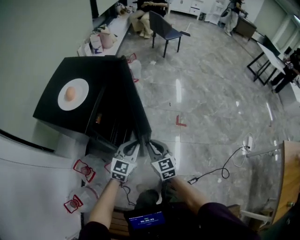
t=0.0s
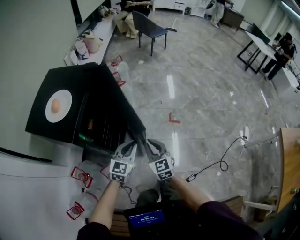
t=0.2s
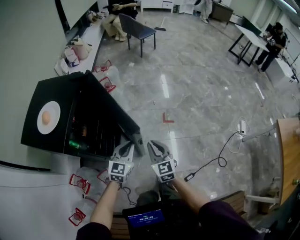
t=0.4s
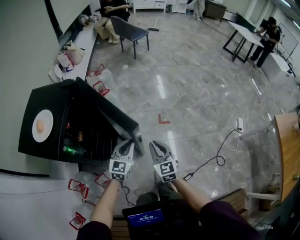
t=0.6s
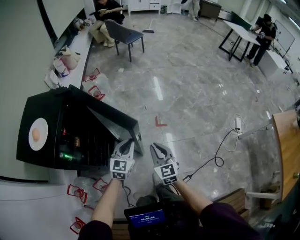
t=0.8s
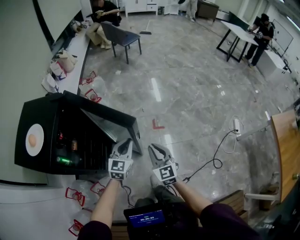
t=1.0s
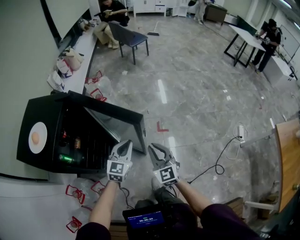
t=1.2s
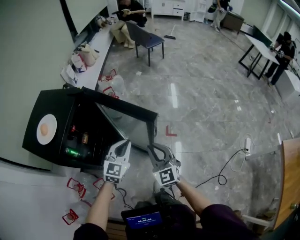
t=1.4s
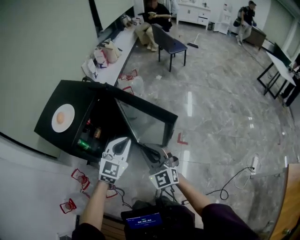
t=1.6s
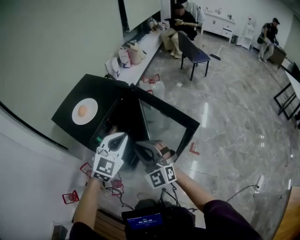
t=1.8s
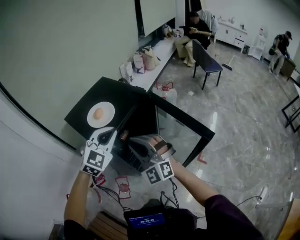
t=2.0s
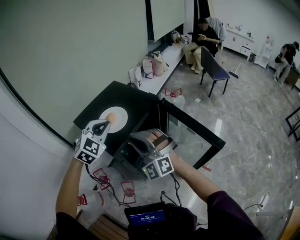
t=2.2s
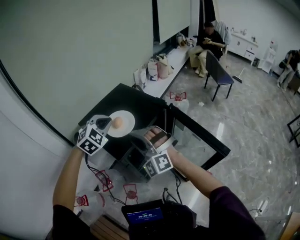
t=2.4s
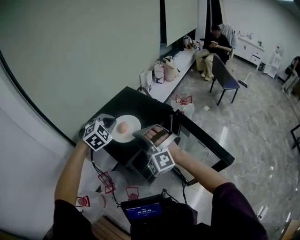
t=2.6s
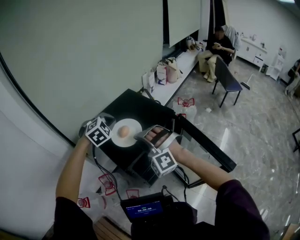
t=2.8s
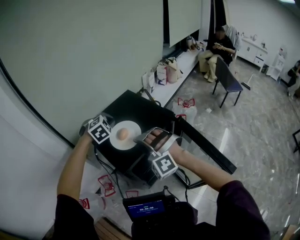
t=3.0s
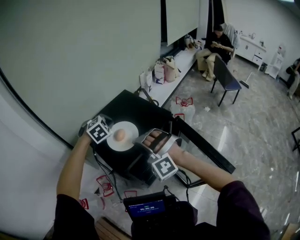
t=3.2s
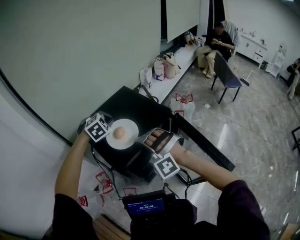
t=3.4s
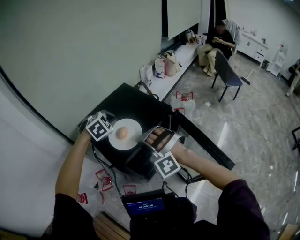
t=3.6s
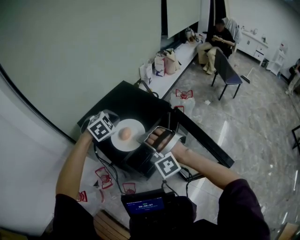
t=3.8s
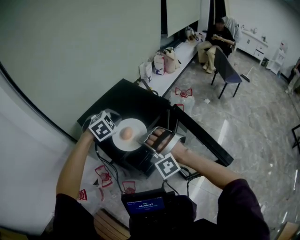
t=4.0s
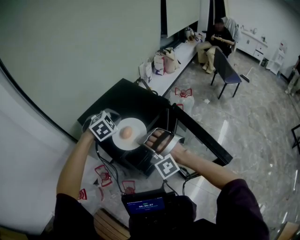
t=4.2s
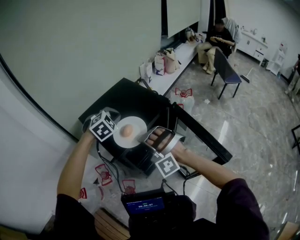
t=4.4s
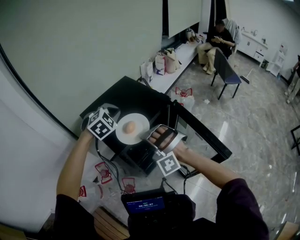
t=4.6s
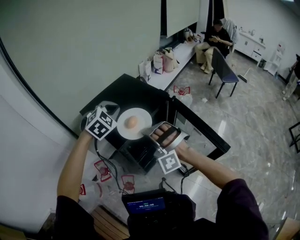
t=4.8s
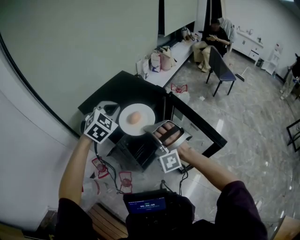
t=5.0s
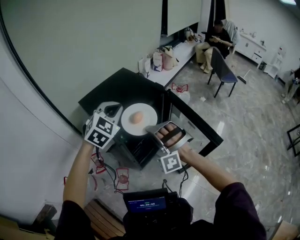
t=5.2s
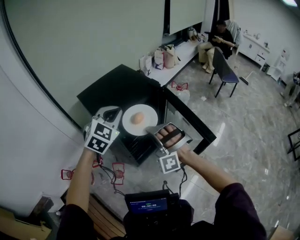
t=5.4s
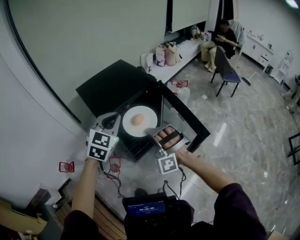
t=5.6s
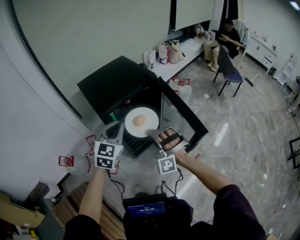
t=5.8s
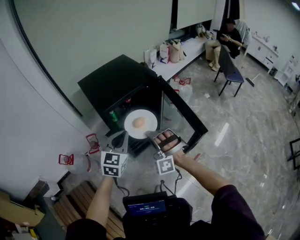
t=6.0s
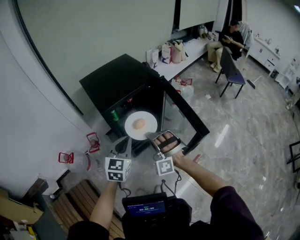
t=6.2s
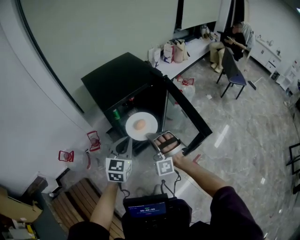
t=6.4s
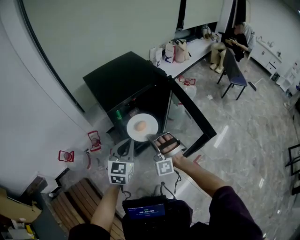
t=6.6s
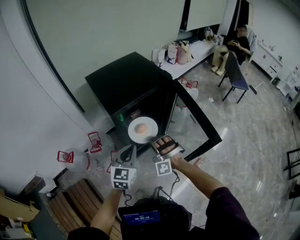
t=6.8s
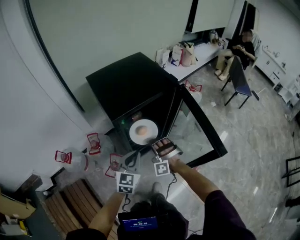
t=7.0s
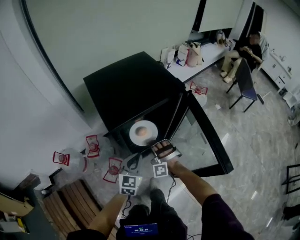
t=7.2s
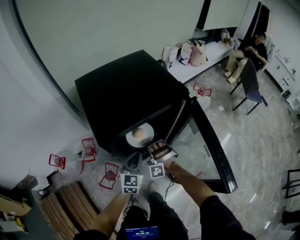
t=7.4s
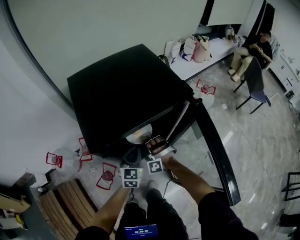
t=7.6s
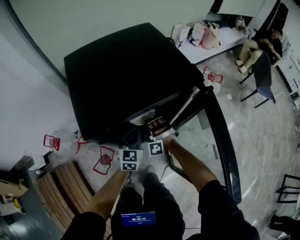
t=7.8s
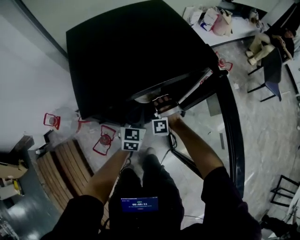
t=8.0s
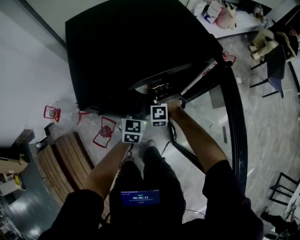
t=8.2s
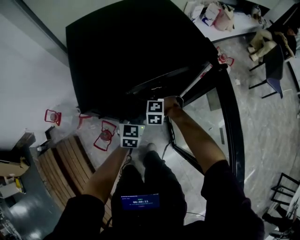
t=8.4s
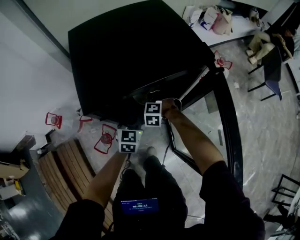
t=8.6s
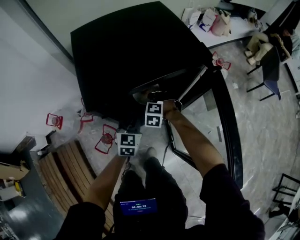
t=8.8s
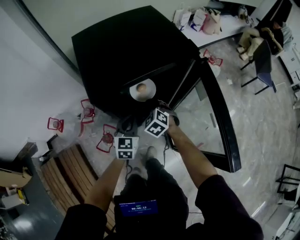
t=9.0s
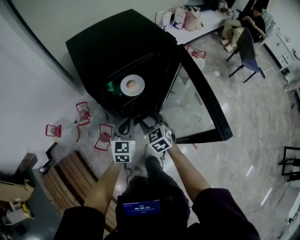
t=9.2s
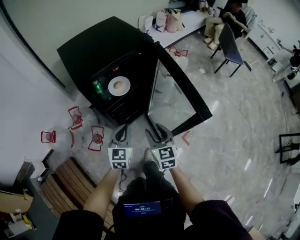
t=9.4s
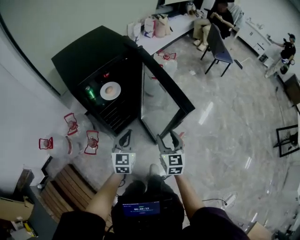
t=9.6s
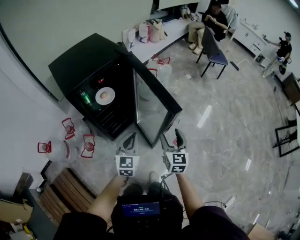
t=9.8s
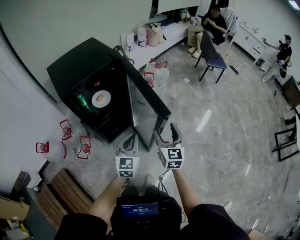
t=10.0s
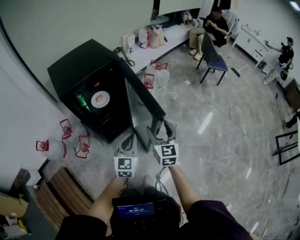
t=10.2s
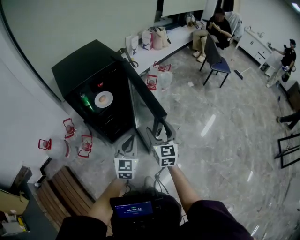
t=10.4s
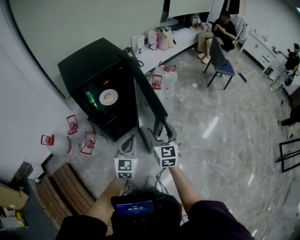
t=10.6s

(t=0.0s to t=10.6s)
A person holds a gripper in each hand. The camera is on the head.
t=0.0s - t=1.6s: The right gripper is displaced upward, to the right and forward by roughly 15 cm, and swivels some 30 degrees. Meanwhile the left gripper travels upward, forward and to the right by about 20 cm.
t=1.6s - t=3.0s: The left gripper ends up approximately 50 cm from where it was, and angles its fingers downward, by some 30 degrees, while the right gripper ends up some 35 cm from where it was, and twists approximately 60 degrees counterclockwise, seen from behind.
t=3.0s - t=4.6s: The left gripper heads backward, covering some 10 cm. Meanwhile the right gripper is displaced backward by about 5 cm.
t=4.6s - t=6.0s: The right gripper goes approximately 20 cm backward and to the right. The left gripper goes some 30 cm backward, and rotates around the line of its fingers by roughly 40 degrees, counterclockwise from behind.
t=6.0s - t=7.6s: The grippers both shift downward and forward by some 35 cm. The right gripper turns by some 30 degrees.
t=7.6s - t=9.0s: The left gripper shifts by approximately 5 cm. The right gripper rotates around the line of its fingers by some 50 degrees, clockwise from behind, and opens.
t=9.0s - t=10.6s: The right gripper shifts by approximately 50 cm, angles its fingers upward, by about 40 degrees, and opens up, while the left gripper changes place by some 35 cm.

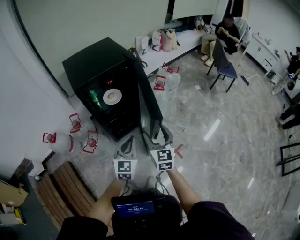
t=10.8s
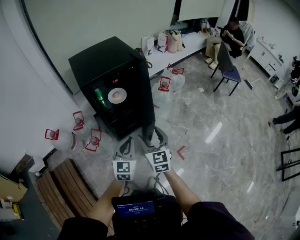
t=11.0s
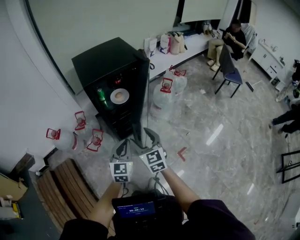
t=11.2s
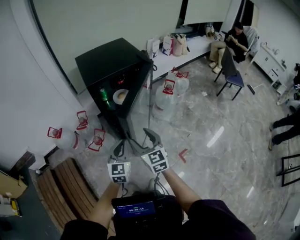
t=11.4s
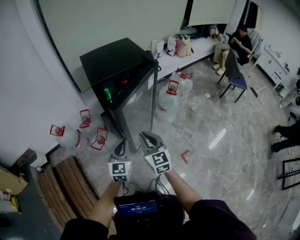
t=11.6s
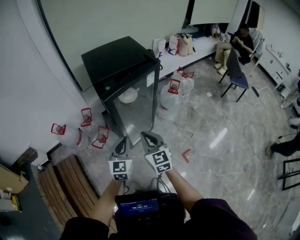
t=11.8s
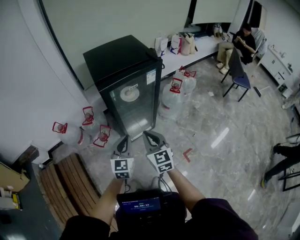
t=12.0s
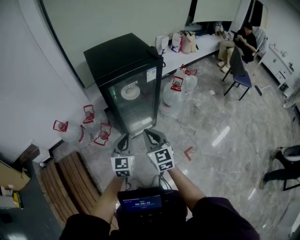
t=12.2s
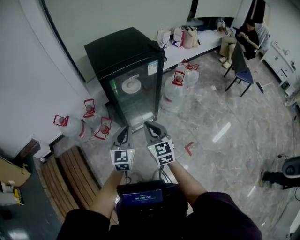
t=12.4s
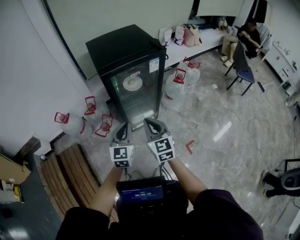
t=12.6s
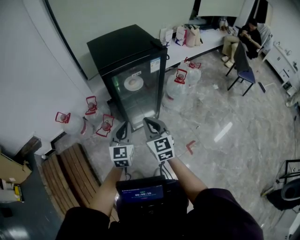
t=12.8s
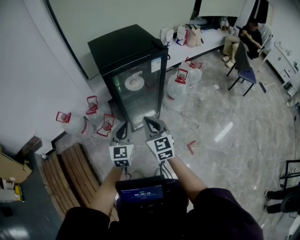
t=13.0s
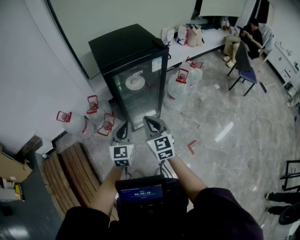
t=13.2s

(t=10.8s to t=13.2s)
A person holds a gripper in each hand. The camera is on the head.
t=10.8s - t=12.0s: Both grippers travel together to the left, about 10 cm. The right gripper closes its fingers.
t=12.0s - t=13.2s: The grippers move only a little.

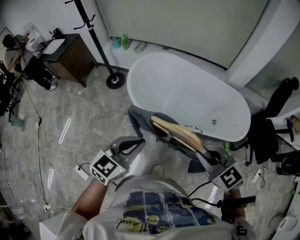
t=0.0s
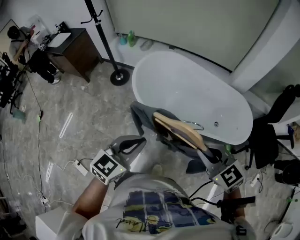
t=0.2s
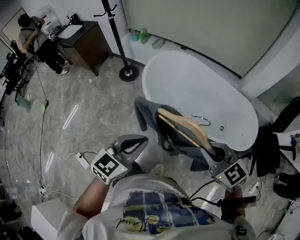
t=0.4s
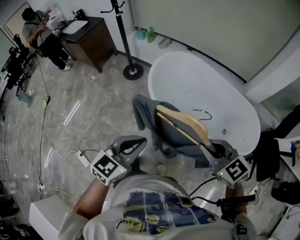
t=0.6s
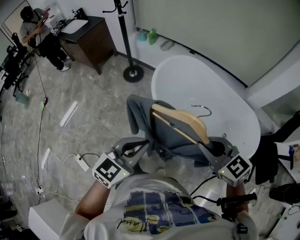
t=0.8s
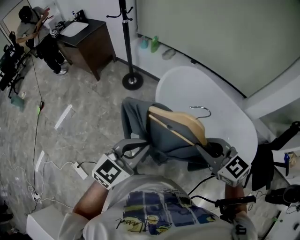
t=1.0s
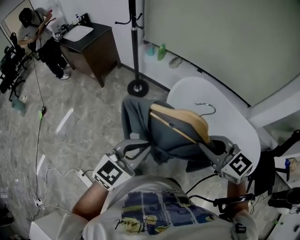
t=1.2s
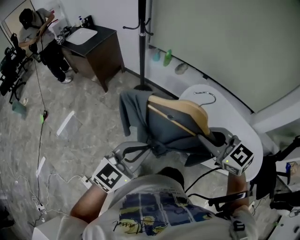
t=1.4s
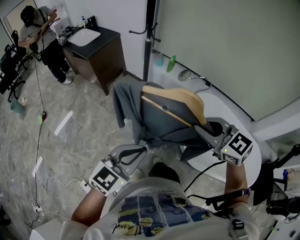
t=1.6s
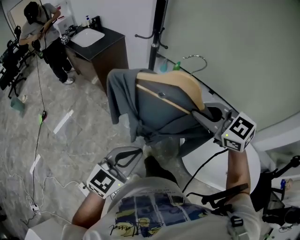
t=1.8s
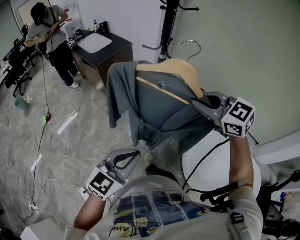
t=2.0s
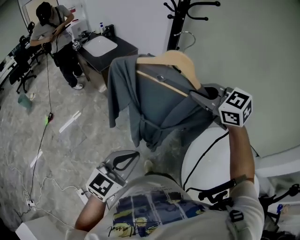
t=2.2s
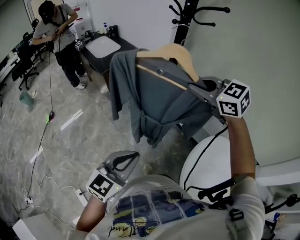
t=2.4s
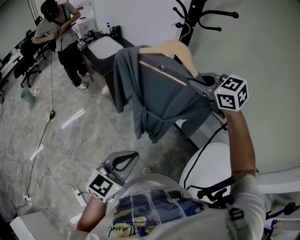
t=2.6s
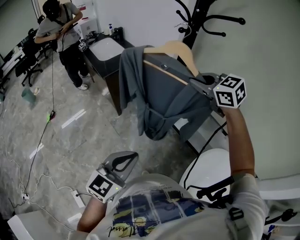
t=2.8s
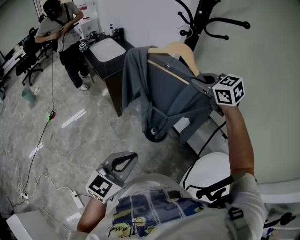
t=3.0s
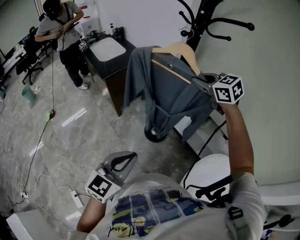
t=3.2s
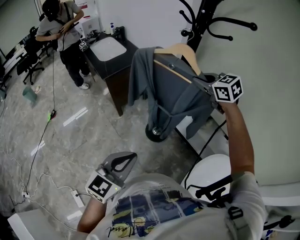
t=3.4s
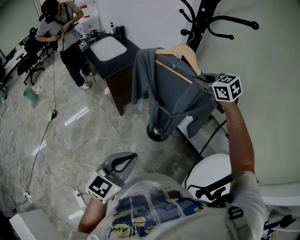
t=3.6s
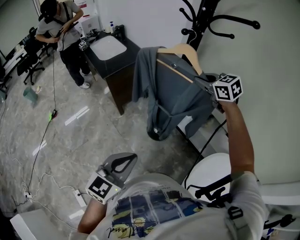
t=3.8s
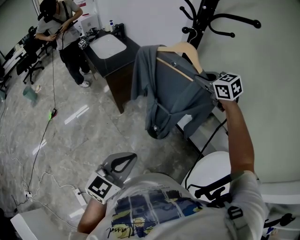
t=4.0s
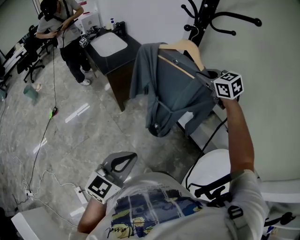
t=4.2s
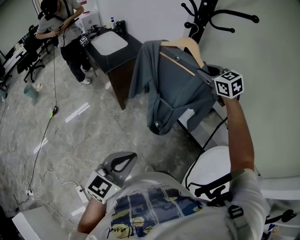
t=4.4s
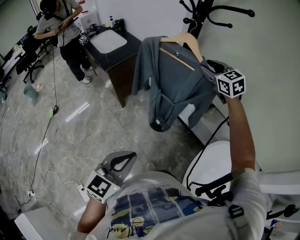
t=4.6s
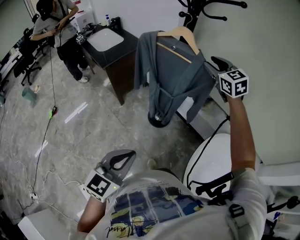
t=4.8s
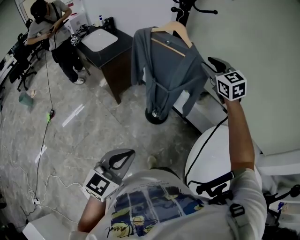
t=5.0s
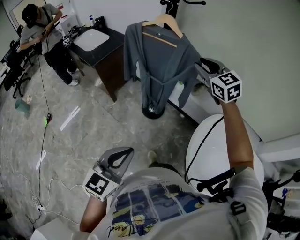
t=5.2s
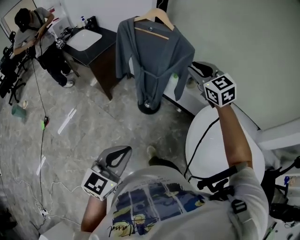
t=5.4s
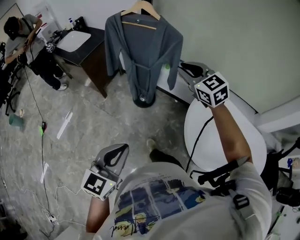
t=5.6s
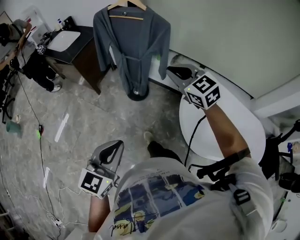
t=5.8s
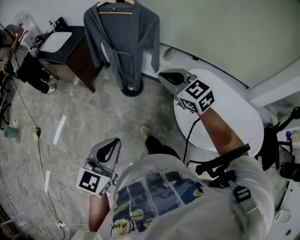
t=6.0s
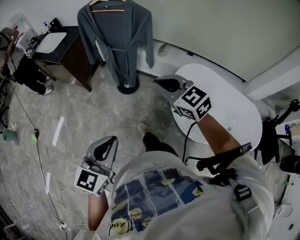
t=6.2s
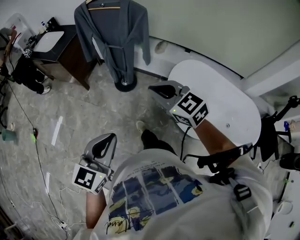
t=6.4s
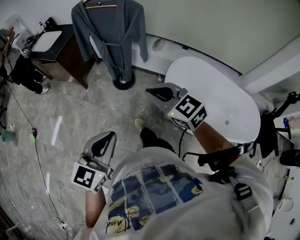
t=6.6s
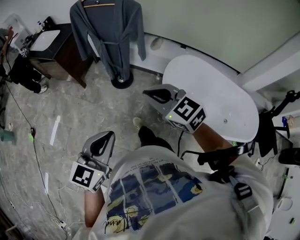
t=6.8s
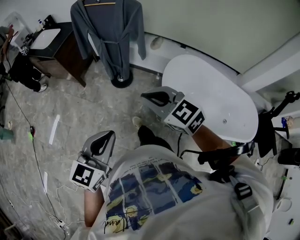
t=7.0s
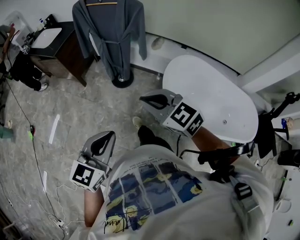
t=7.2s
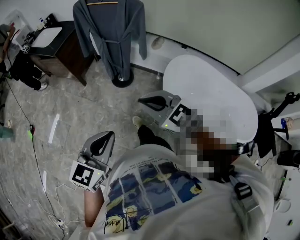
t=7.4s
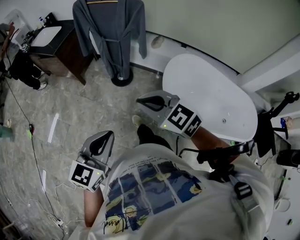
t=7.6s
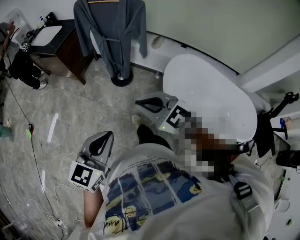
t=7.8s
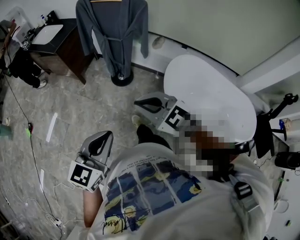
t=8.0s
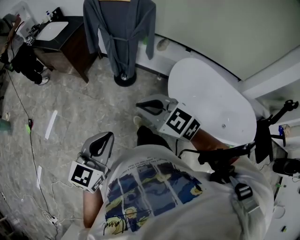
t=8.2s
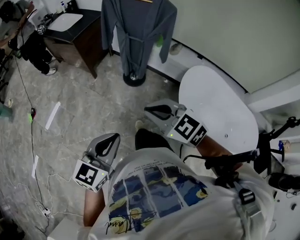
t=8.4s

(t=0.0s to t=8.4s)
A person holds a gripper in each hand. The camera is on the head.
t=0.0s - t=1.4s: The right gripper is displaced forward and to the left by some 40 cm. Meanwhile the left gripper is displaced to the left and forward by roughly 35 cm.
t=1.4s - t=2.8s: The right gripper shifts some 60 cm forward; the left gripper heads forward, covering about 30 cm, and changes its angle by roughly 30 degrees.
t=2.8s - t=4.2s: The right gripper shifts some 10 cm forward and downward.
t=4.2s - t=5.6s: The left gripper goes approximately 20 cm backward; the right gripper is displaced backward by roughly 30 cm, swivels some 20 degrees, and opens and closes again.
t=5.6s - t=7.0s: The right gripper heads backward, covering roughly 30 cm, while the left gripper shifts approximately 10 cm backward.
t=7.0s - t=8.4s: The two grippers go some 5 cm to the left.

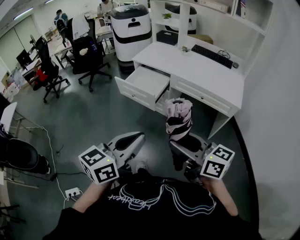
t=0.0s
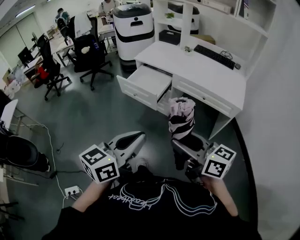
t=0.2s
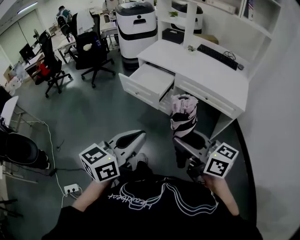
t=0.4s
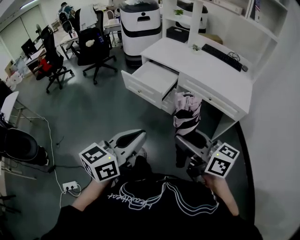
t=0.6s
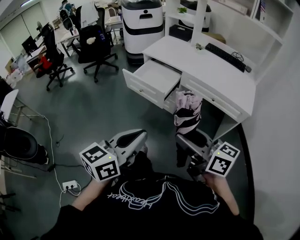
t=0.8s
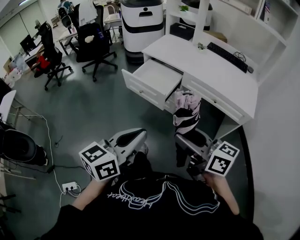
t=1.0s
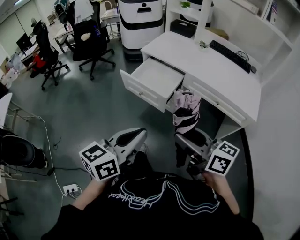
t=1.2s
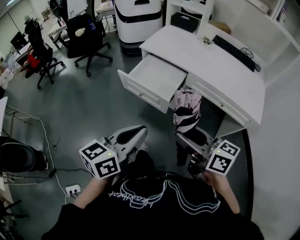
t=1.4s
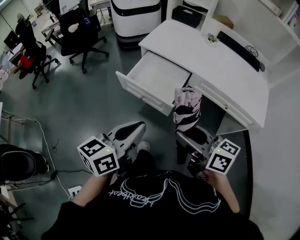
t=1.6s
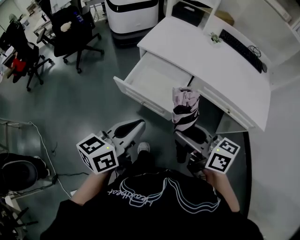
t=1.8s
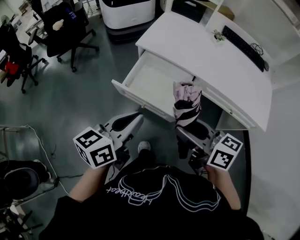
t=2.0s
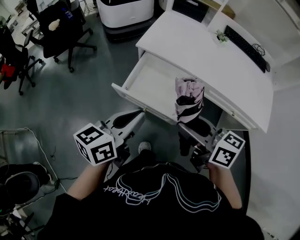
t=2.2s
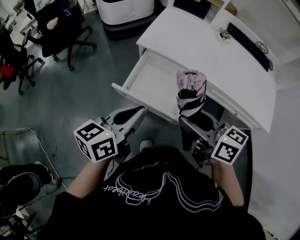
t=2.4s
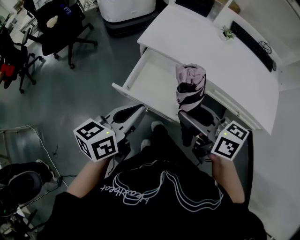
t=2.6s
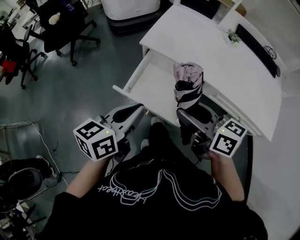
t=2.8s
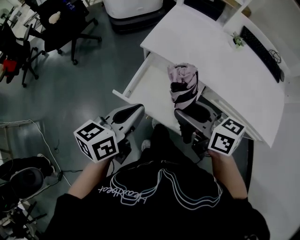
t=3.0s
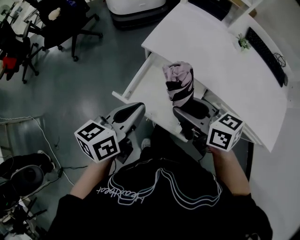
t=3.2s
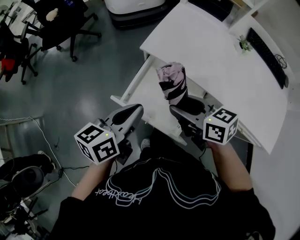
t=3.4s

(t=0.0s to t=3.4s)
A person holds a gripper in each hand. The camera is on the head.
t=0.0s - t=1.6s: Both grippers travel together forward, roughly 25 cm.
t=1.6s - t=3.4s: The two grippers go roughly 30 cm forward. The right gripper swivels approximately 20 degrees.
